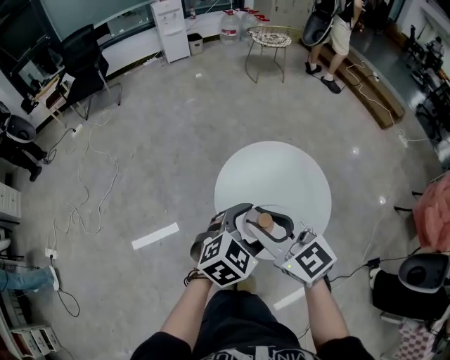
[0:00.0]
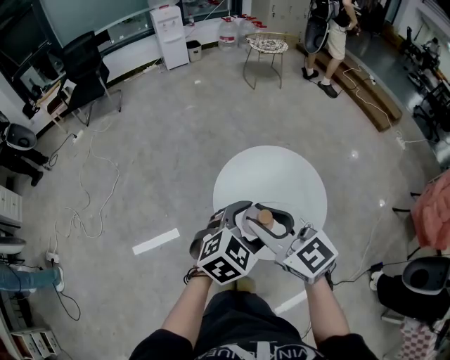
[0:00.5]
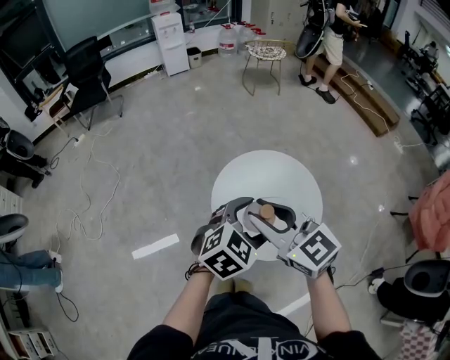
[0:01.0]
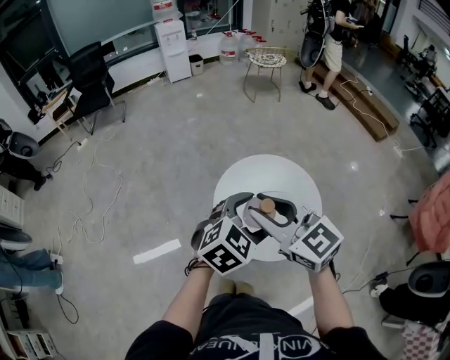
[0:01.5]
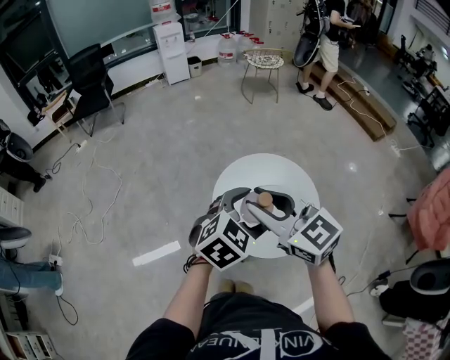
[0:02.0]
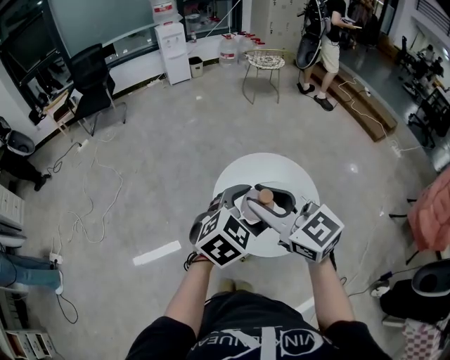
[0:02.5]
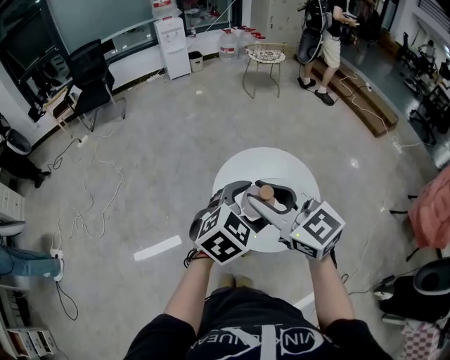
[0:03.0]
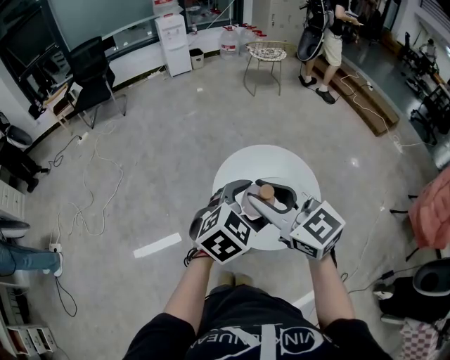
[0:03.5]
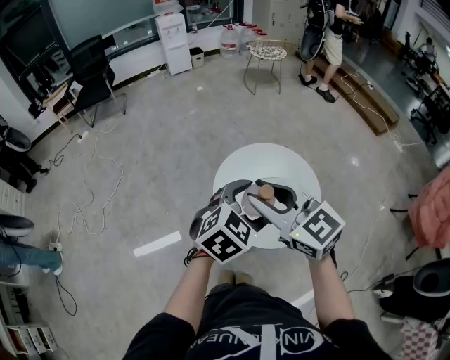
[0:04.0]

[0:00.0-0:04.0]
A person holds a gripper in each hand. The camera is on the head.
0:00.0 to 0:02.0: Both grippers move upward, about 10 cm.
0:02.0 to 0:04.0: The two grippers keep their place.

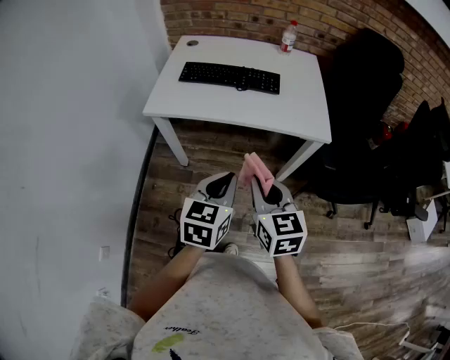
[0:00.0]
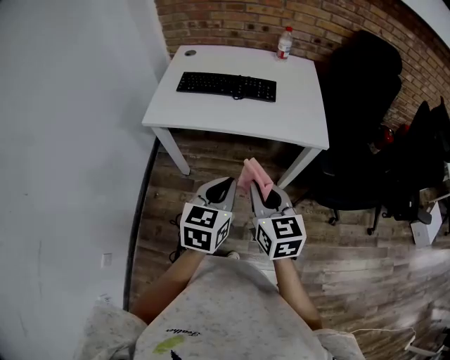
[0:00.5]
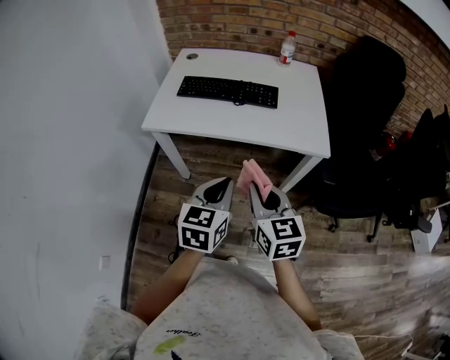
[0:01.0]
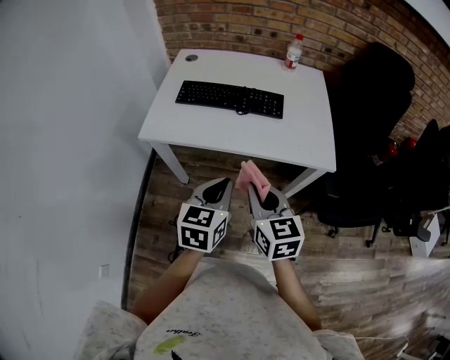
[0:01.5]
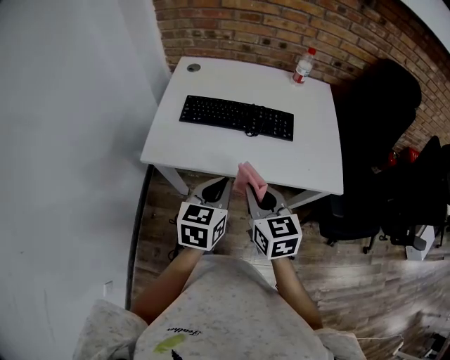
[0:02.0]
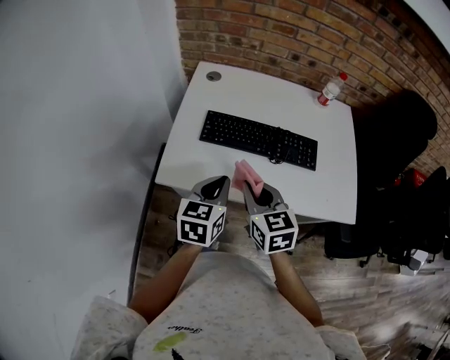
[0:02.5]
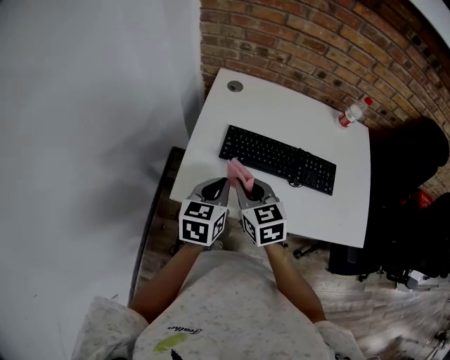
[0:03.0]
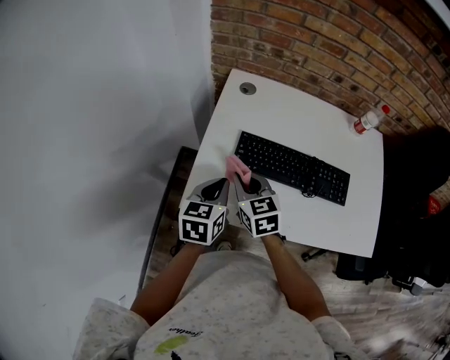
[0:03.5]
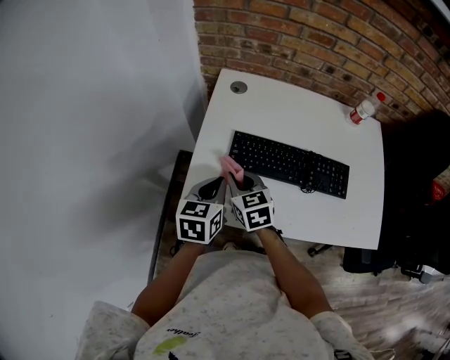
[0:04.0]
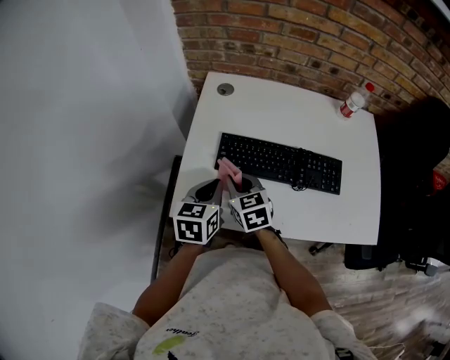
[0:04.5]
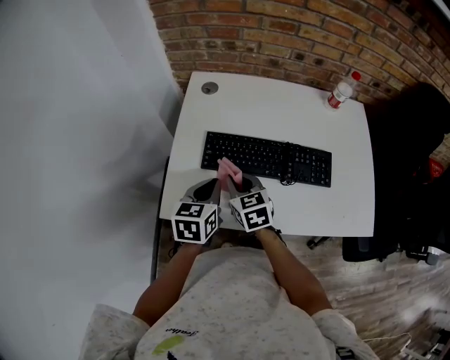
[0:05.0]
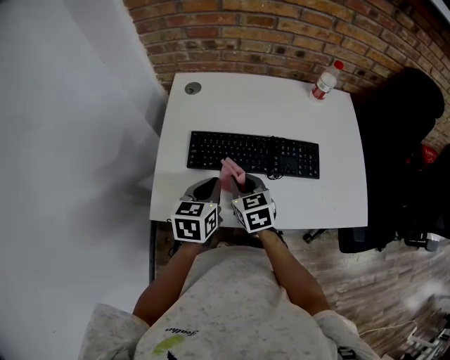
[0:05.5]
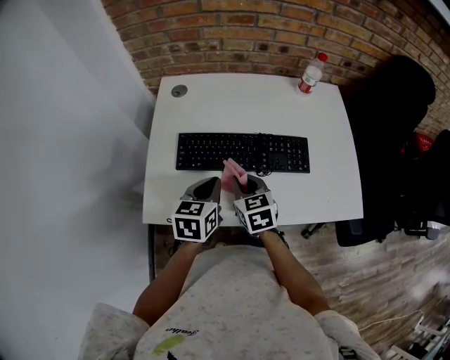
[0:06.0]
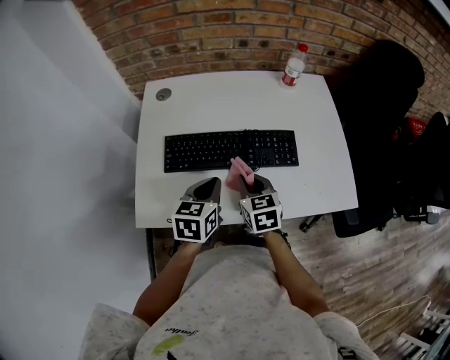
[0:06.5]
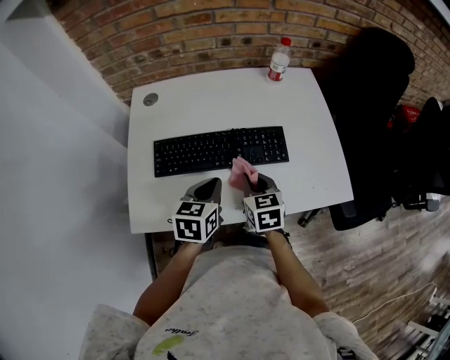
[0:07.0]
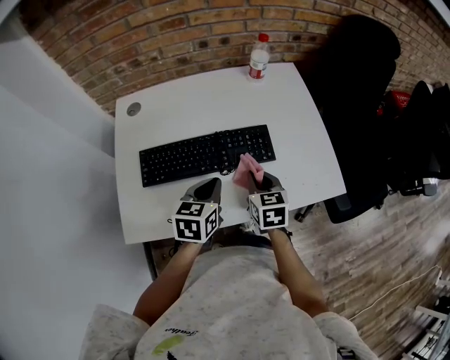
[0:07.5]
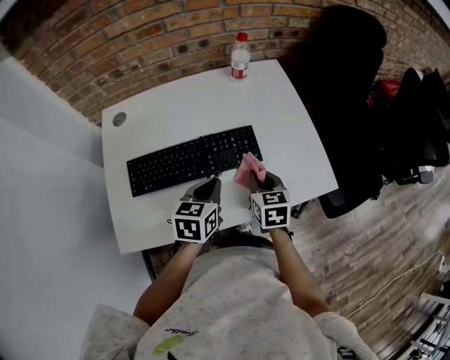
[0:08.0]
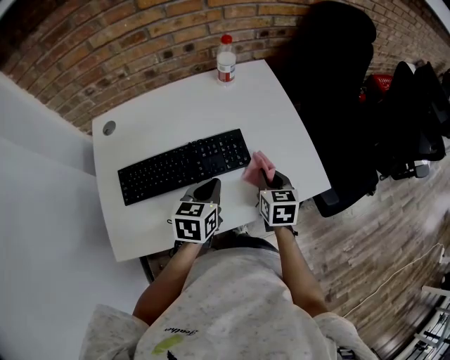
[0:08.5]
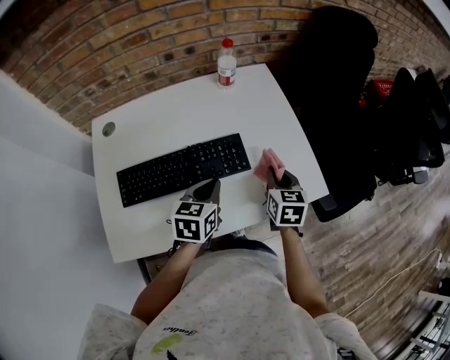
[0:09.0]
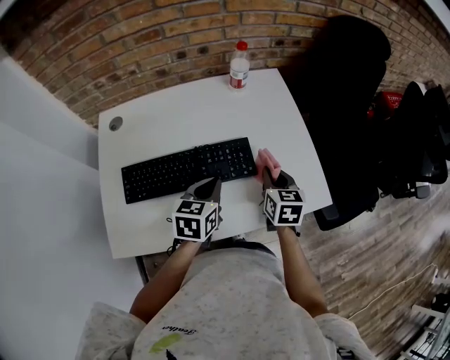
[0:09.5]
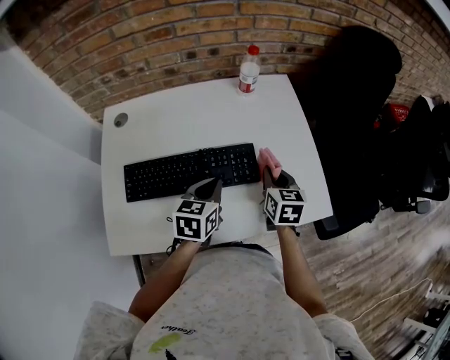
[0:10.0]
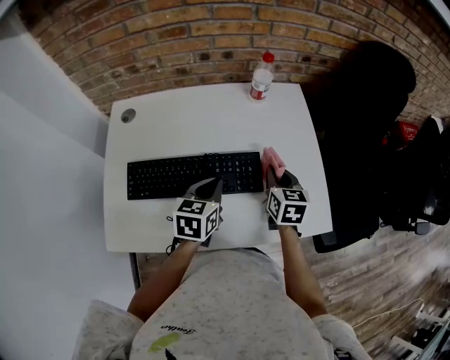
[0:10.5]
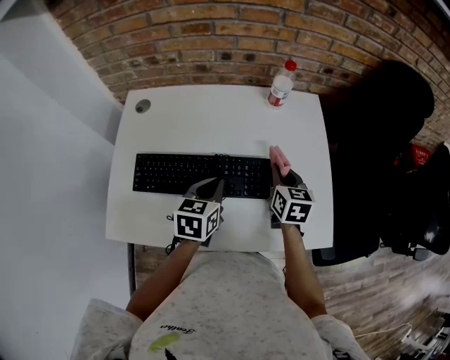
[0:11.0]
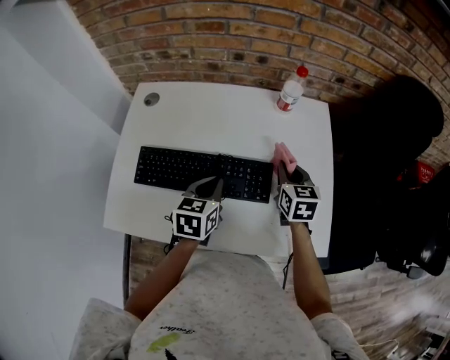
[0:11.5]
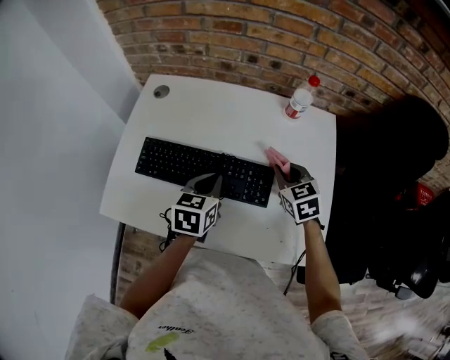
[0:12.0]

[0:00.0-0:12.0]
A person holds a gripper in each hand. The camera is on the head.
0:00.0 to 0:02.0: Both grippers move forward, roughly 20 cm.
0:02.0 to 0:04.0: Both grippers move forward and to the left, some 35 cm.
0:04.0 to 0:06.0: The grippers both shift to the right by some 15 cm.
0:06.0 to 0:08.0: The two grippers go about 20 cm to the right. The right gripper changes its angle by about 30 degrees.
0:08.0 to 0:10.0: Both grippers move forward, roughly 5 cm.
0:10.0 to 0:12.0: The left gripper ends up approximately 5 cm from where it was, and changes its angle by roughly 20 degrees. The right gripper moves some 10 cm, and rotates about 50 degrees.

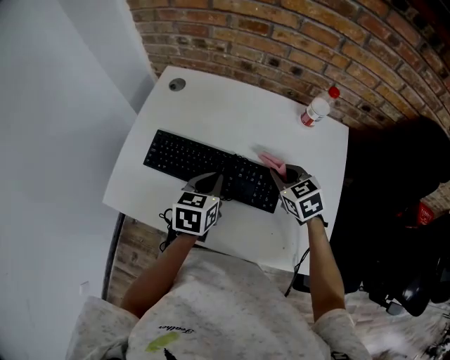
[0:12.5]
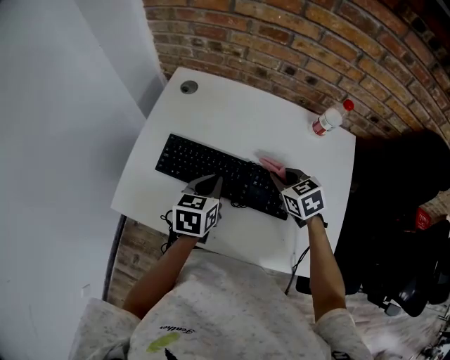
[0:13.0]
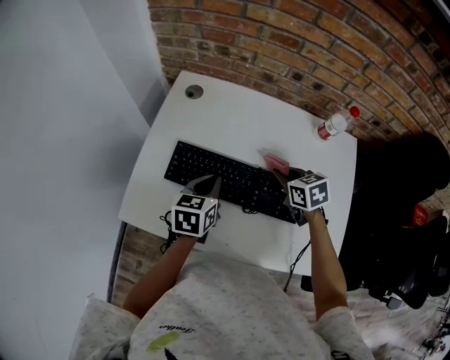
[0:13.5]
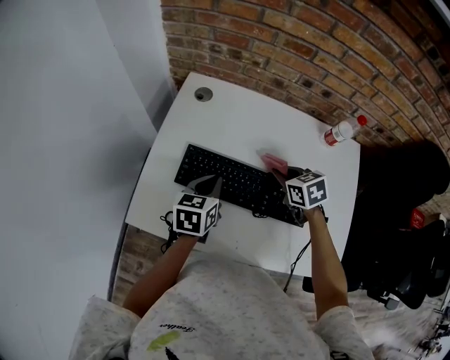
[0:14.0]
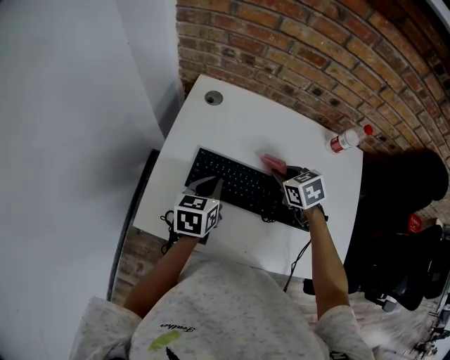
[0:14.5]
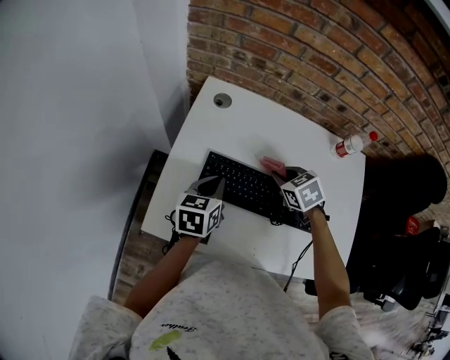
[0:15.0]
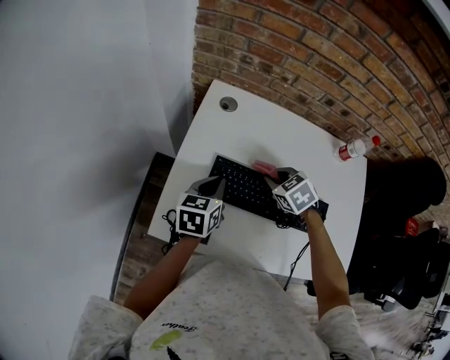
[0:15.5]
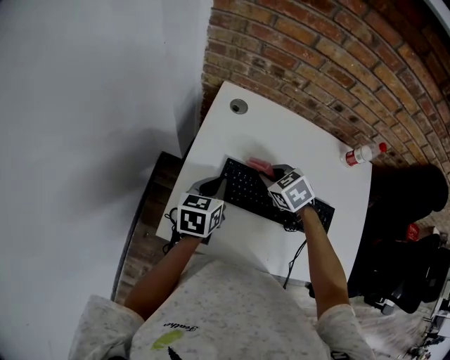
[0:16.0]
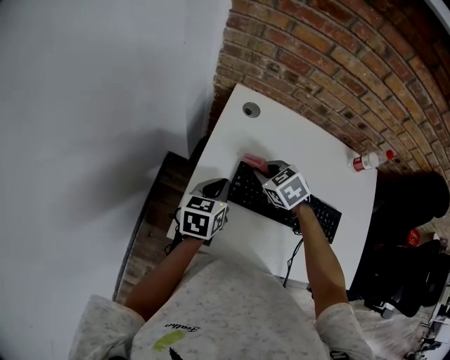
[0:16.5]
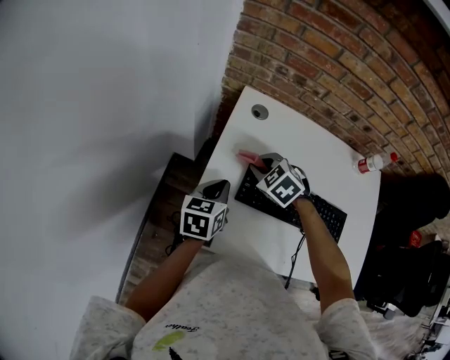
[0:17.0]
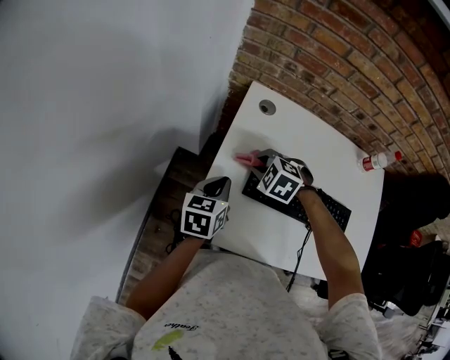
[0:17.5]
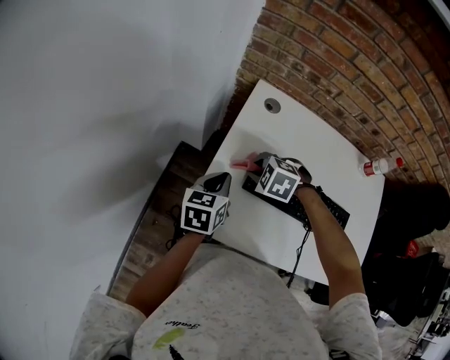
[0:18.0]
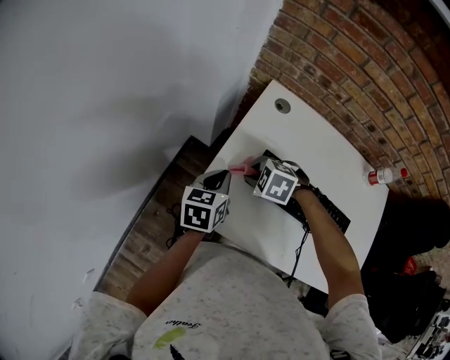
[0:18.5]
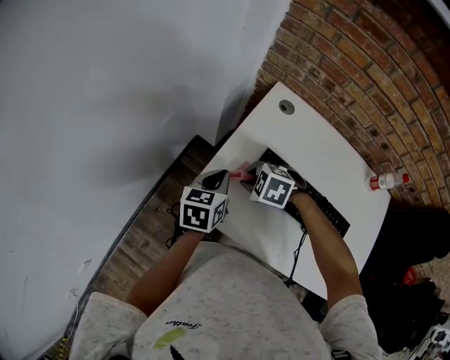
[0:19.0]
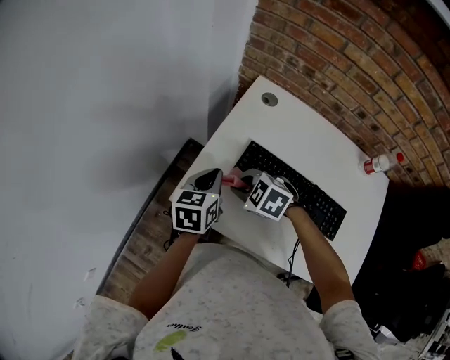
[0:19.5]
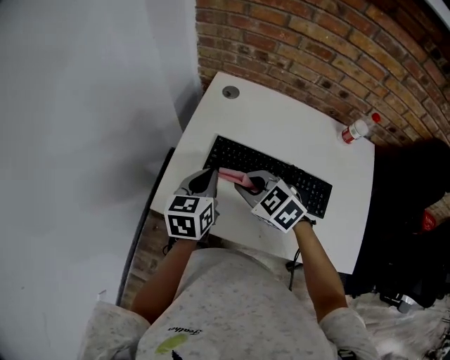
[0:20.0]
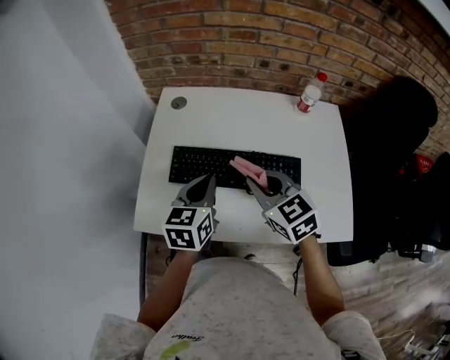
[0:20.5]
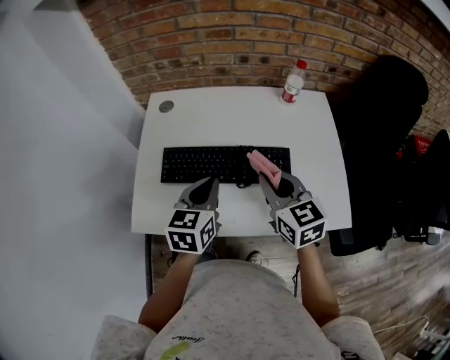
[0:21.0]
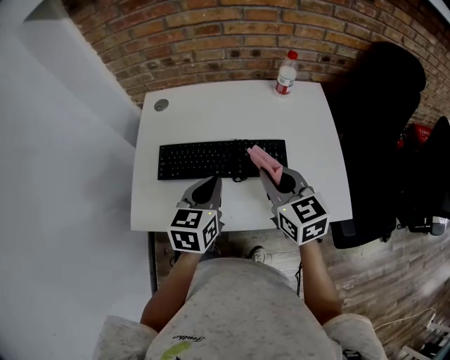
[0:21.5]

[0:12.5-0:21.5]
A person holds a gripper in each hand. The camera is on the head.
0:12.5 to 0:14.5: The left gripper goes roughly 15 cm to the left, while the right gripper travels to the left and forward by some 15 cm.
0:14.5 to 0:17.0: The right gripper is displaced to the left by some 25 cm, and swivels about 30 degrees; the left gripper is displaced to the left by some 15 cm.
0:17.0 to 0:19.5: The right gripper changes place by approximately 15 cm, and rotates approximately 30 degrees, while the left gripper shifts by about 10 cm.
0:19.5 to 0:21.5: The right gripper changes place by some 35 cm, and angles its fingers upward, by about 40 degrees. The left gripper shifts by some 25 cm, and rotates roughly 30 degrees.

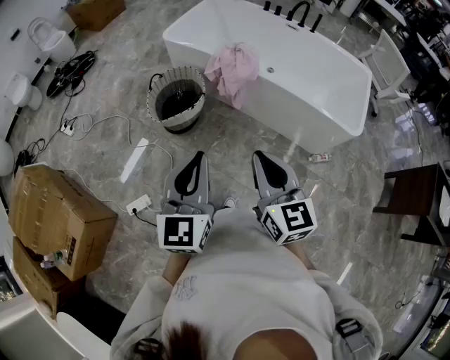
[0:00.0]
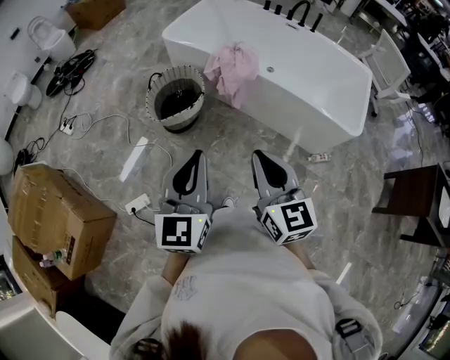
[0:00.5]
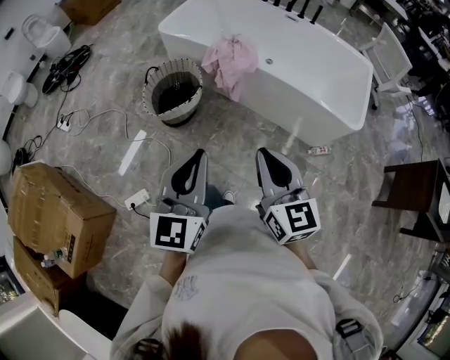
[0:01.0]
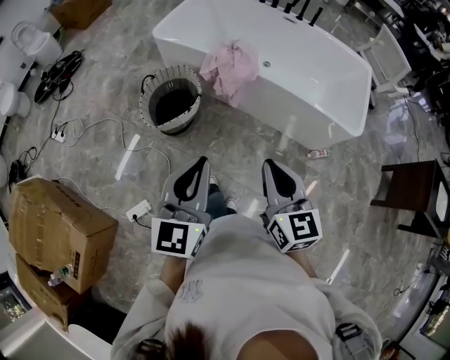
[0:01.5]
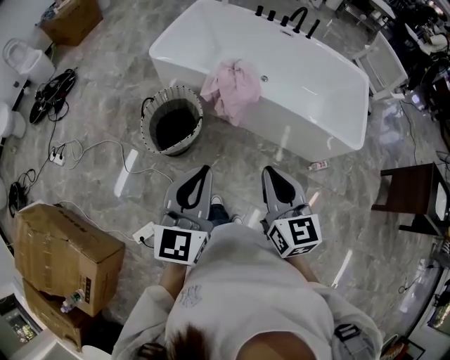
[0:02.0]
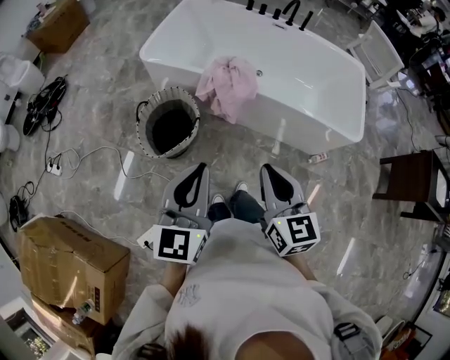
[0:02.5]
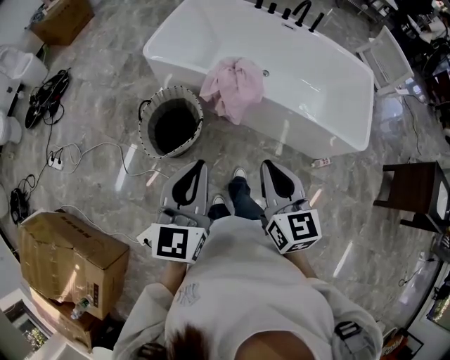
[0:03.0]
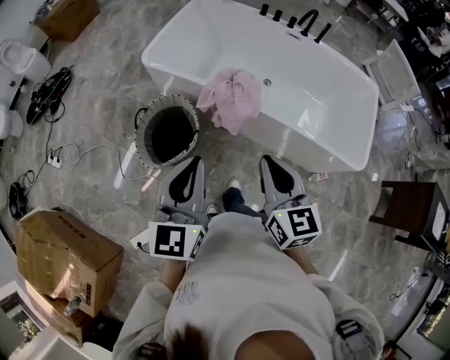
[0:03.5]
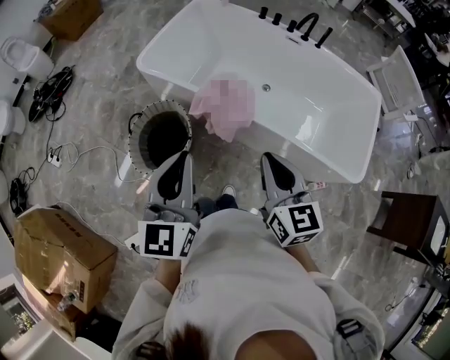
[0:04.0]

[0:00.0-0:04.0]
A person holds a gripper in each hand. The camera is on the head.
0:00.0 to 0:02.0: Both grippers move forward, approximately 15 cm.
0:02.0 to 0:04.0: Both grippers travel together forward, roughly 20 cm.
